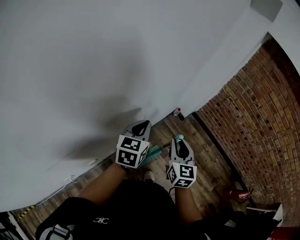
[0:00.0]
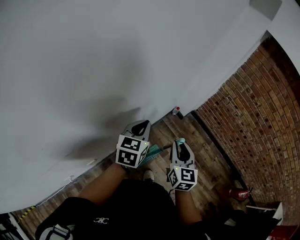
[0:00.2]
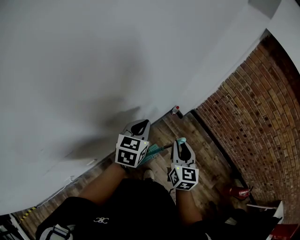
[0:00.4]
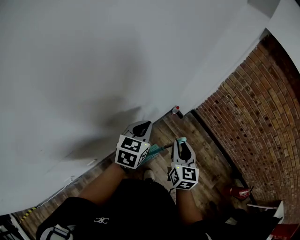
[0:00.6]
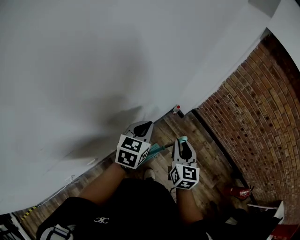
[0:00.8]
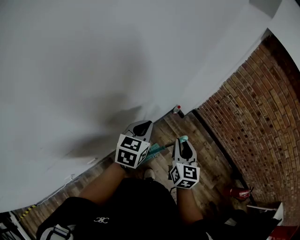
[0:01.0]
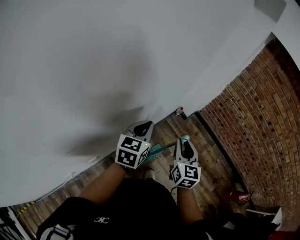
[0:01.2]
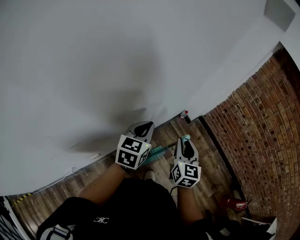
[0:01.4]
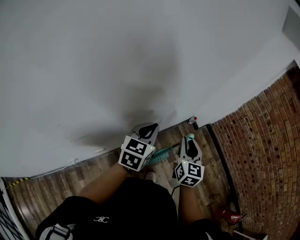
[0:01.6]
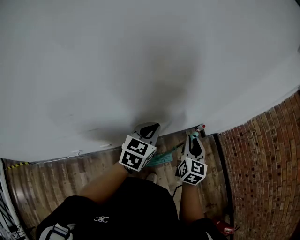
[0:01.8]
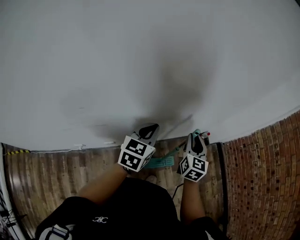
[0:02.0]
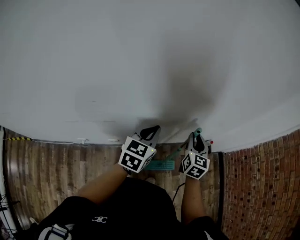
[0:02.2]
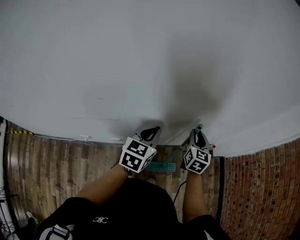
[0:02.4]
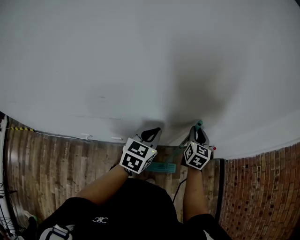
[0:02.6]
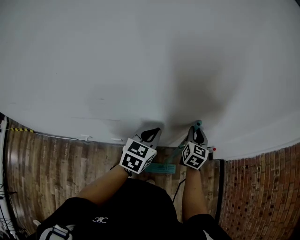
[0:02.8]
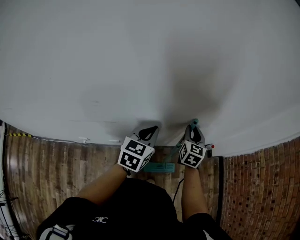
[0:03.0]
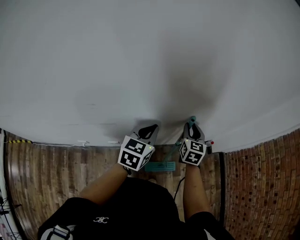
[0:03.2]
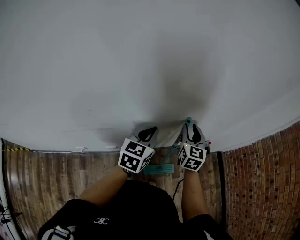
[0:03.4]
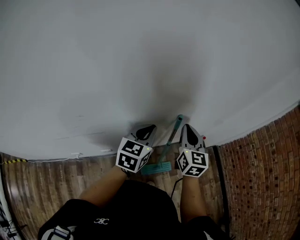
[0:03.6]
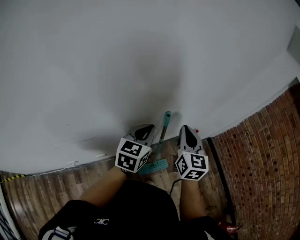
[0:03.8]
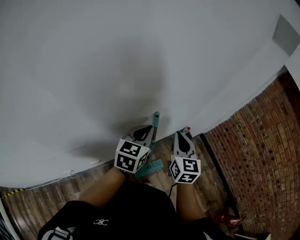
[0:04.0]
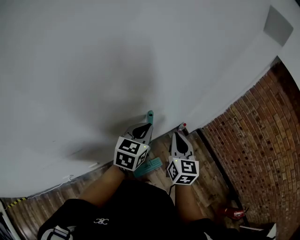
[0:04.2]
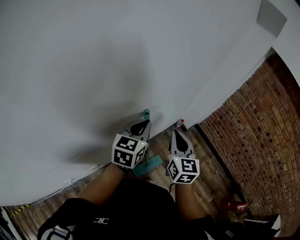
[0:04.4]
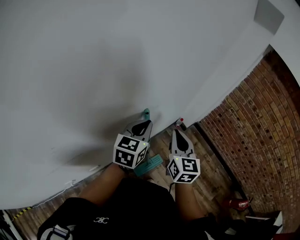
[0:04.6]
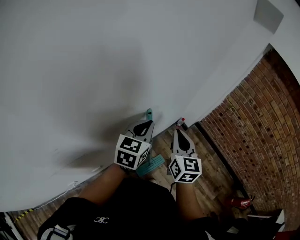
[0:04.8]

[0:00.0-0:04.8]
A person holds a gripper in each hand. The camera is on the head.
0:00.0 to 0:01.6: The grippers make only small movements.
0:01.6 to 0:03.2: The left gripper travels to the left by approximately 15 cm, and turns by approximately 20 degrees. Meanwhile the right gripper shifts about 20 cm to the left and forward, and swivels some 20 degrees.
0:03.2 to 0:04.8: The left gripper moves to the right and forward, some 15 cm, and rotates about 30 degrees, while the right gripper moves to the right, upward and backward, roughly 15 cm, swivels about 30 degrees, and closes.

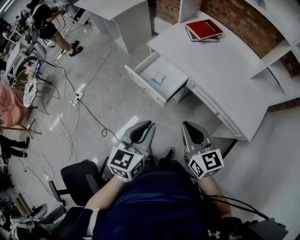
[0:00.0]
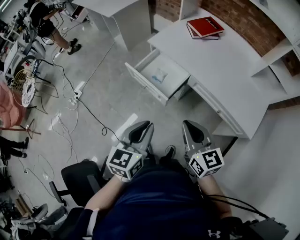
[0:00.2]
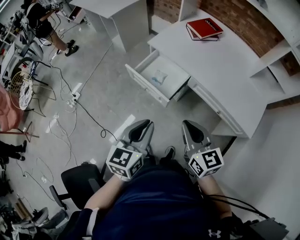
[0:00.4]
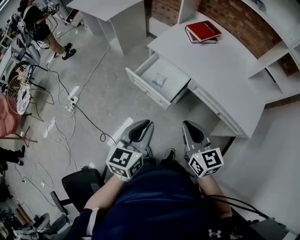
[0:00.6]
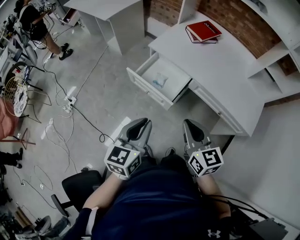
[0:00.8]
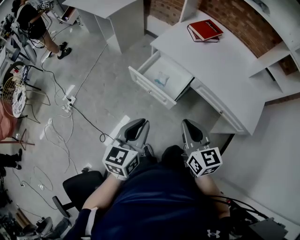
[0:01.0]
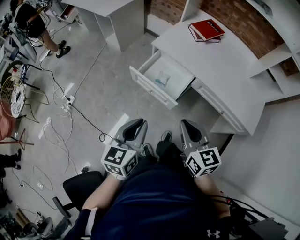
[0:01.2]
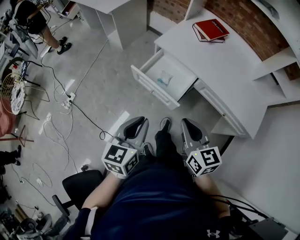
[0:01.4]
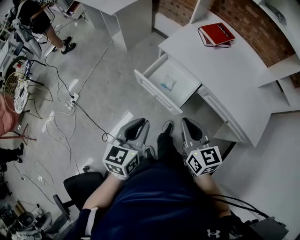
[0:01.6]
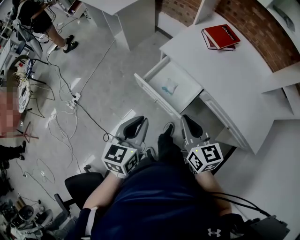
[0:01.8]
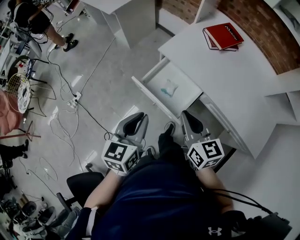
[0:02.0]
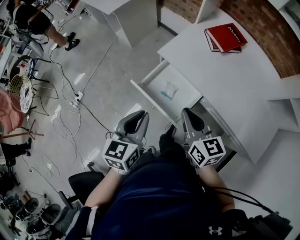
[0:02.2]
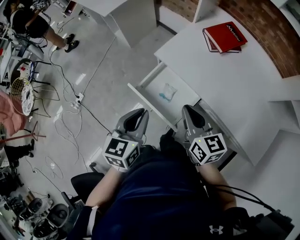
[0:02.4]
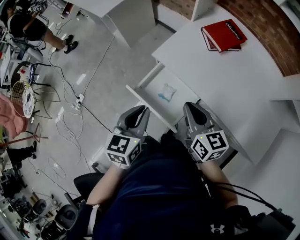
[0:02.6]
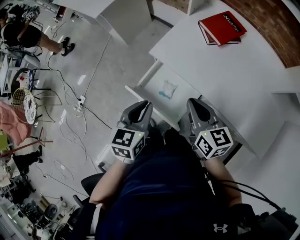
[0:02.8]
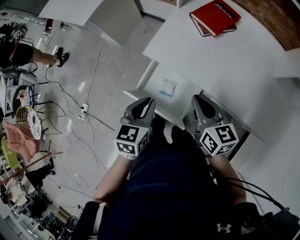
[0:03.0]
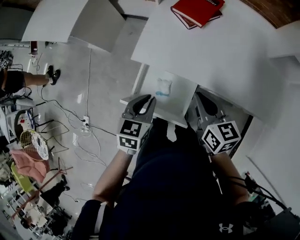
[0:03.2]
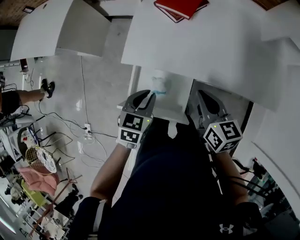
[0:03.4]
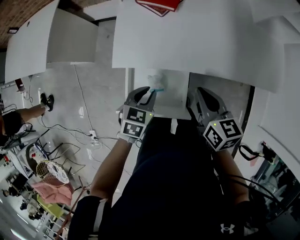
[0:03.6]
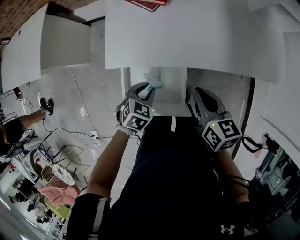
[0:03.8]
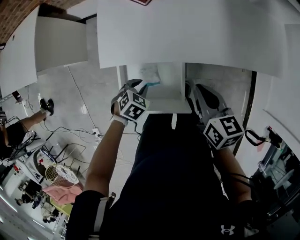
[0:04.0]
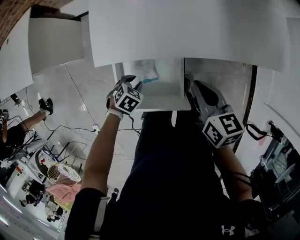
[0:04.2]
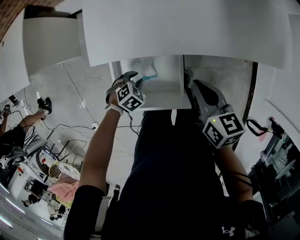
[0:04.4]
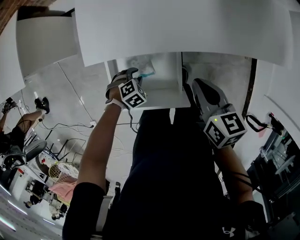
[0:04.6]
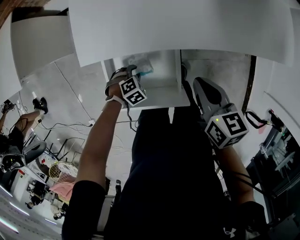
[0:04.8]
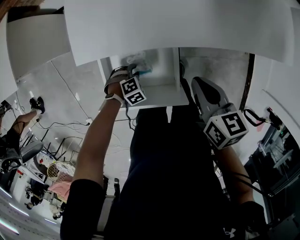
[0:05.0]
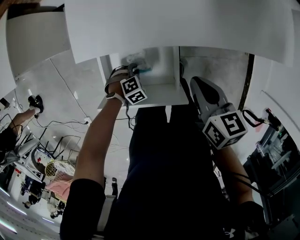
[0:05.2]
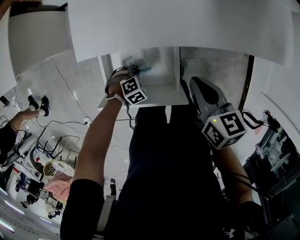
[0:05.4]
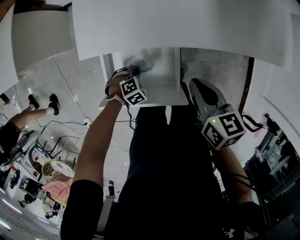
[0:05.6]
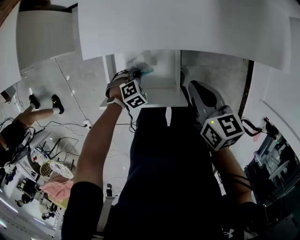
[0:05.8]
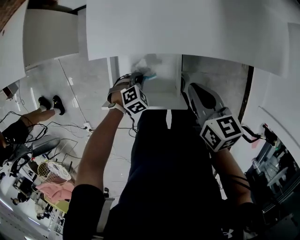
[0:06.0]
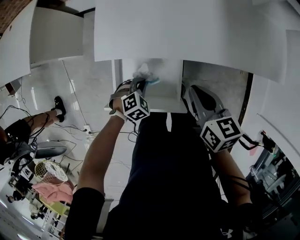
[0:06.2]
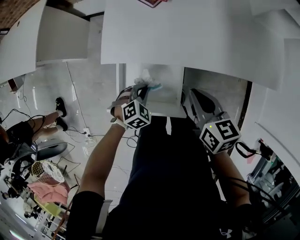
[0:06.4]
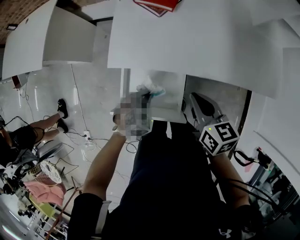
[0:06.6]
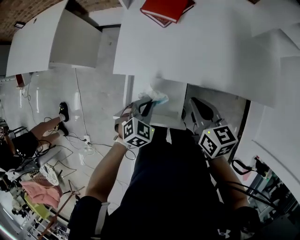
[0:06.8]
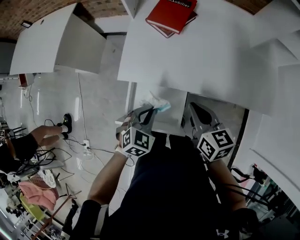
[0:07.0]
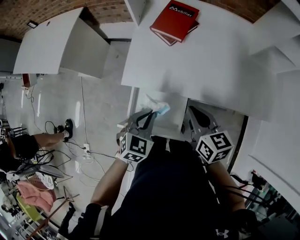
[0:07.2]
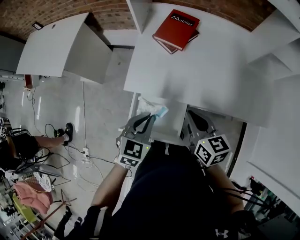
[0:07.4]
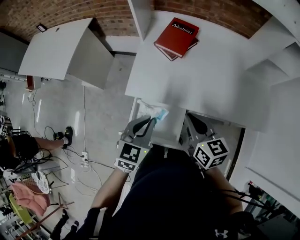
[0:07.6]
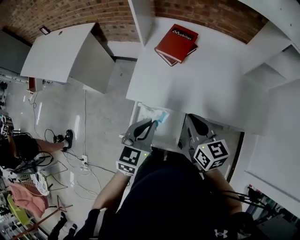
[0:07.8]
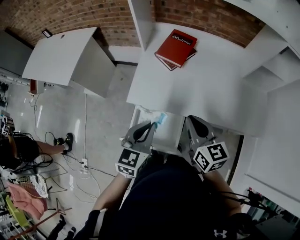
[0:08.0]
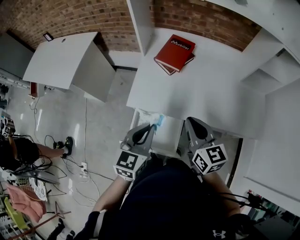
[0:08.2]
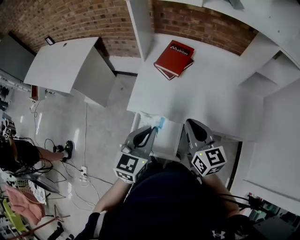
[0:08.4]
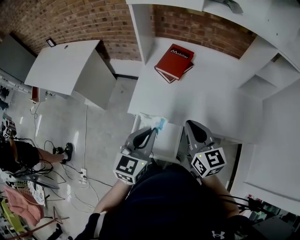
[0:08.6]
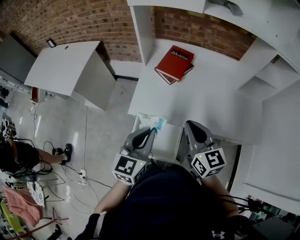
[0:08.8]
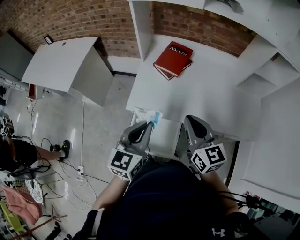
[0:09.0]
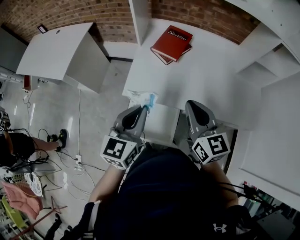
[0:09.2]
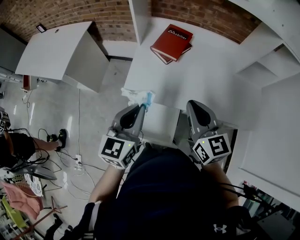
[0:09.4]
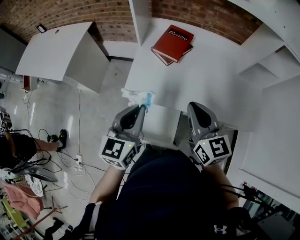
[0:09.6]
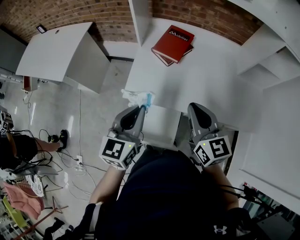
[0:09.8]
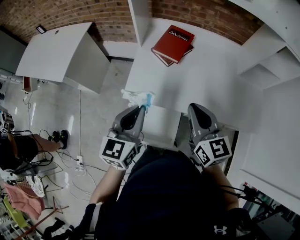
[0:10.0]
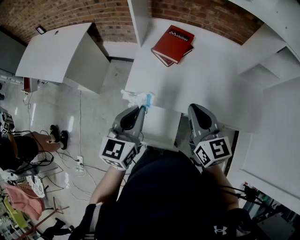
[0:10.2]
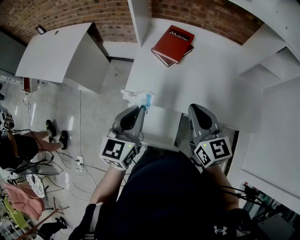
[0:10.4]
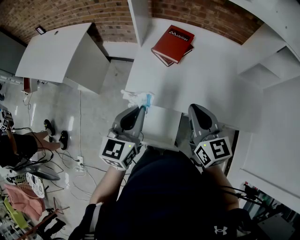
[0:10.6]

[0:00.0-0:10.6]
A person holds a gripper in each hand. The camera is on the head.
0:00.0 to 0:01.6: The grippers both shift to the left and forward by approximately 15 cm.
0:01.6 to 0:03.0: The two grippers go about 25 cm forward.
0:03.0 to 0:04.6: The right gripper goes roughly 10 cm downward, and changes its angle by approximately 40 degrees; the left gripper travels downward by approximately 35 cm, tips its fingers downward by roughly 40 degrees, and opens.
0:04.6 to 0:06.0: The left gripper closes.
0:06.0 to 0:07.6: The right gripper moves upward, some 15 cm, and swivels some 20 degrees. The left gripper heads upward, covering some 35 cm, and tilts its fingers approximately 40 degrees upward.
0:07.6 to 0:09.0: Both grippers move upward, roughly 10 cm.
0:09.0 to 0:10.6: The grippers make only small movements.

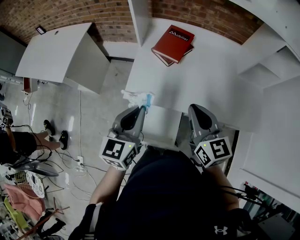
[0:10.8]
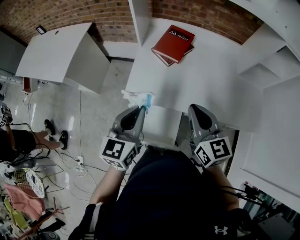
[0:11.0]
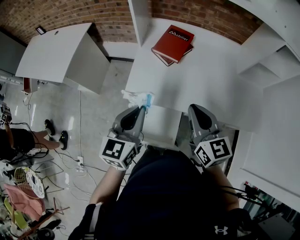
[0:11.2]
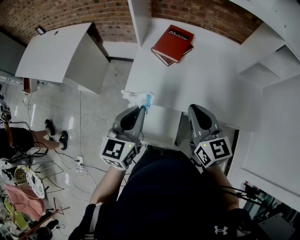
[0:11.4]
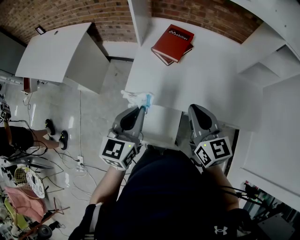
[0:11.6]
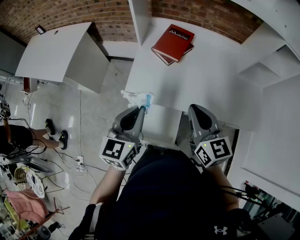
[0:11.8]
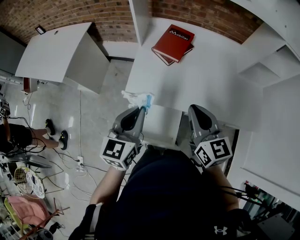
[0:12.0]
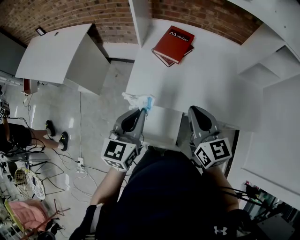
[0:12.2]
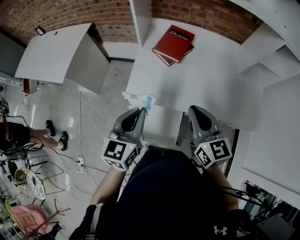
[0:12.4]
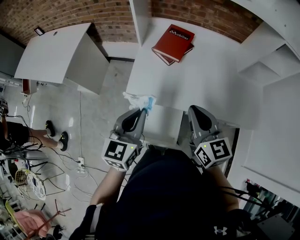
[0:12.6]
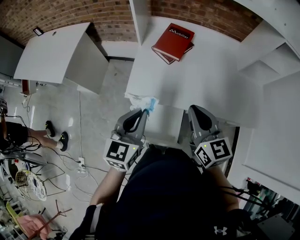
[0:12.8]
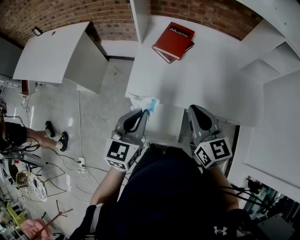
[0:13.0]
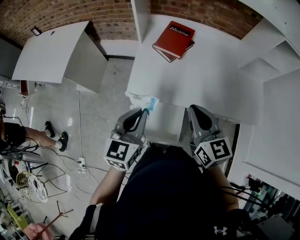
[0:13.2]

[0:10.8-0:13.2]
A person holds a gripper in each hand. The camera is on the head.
0:10.8 to 0:12.0: Neither gripper changes place.
0:12.0 to 0:13.2: There are only small adjustments of the grippers.

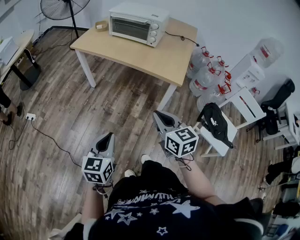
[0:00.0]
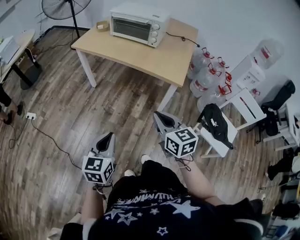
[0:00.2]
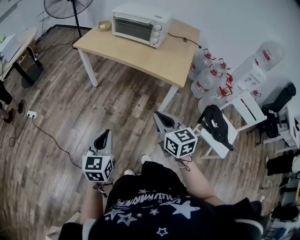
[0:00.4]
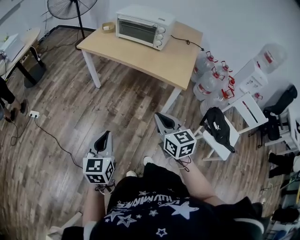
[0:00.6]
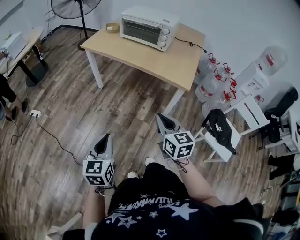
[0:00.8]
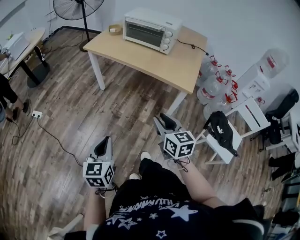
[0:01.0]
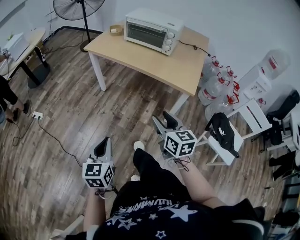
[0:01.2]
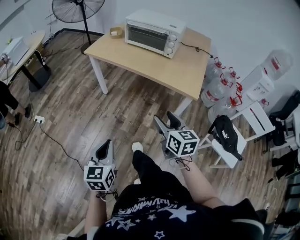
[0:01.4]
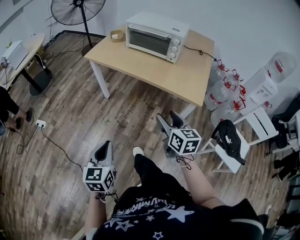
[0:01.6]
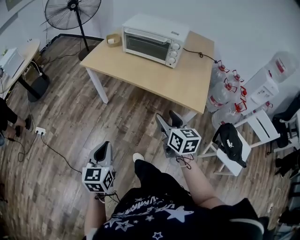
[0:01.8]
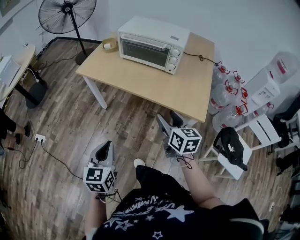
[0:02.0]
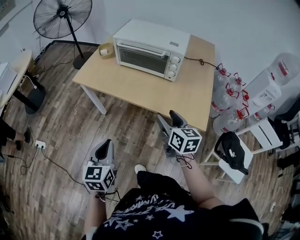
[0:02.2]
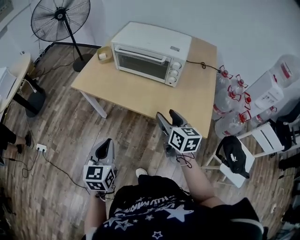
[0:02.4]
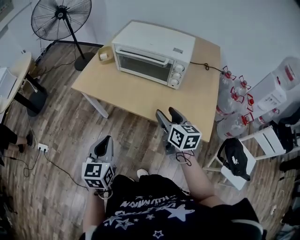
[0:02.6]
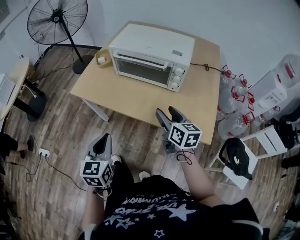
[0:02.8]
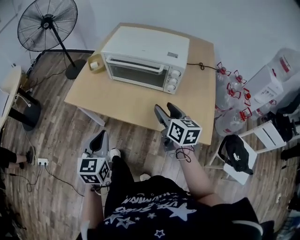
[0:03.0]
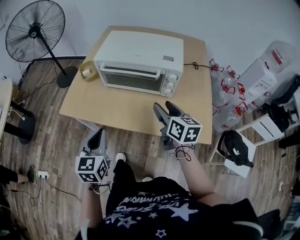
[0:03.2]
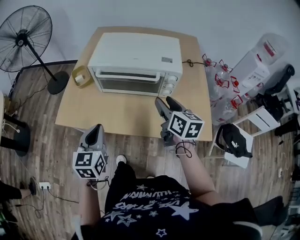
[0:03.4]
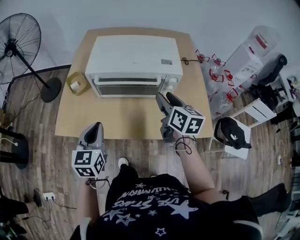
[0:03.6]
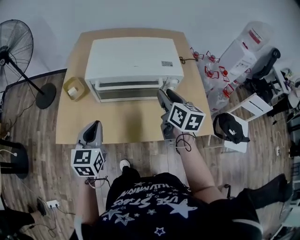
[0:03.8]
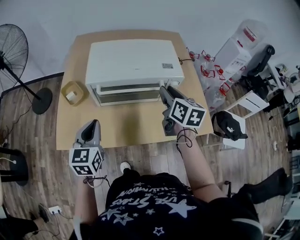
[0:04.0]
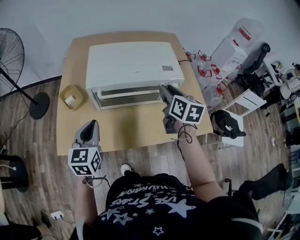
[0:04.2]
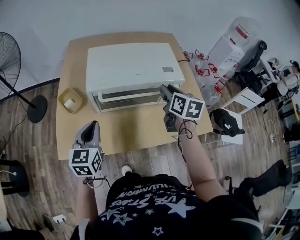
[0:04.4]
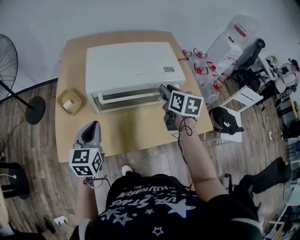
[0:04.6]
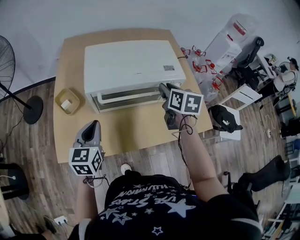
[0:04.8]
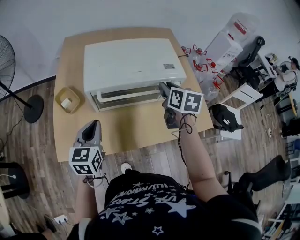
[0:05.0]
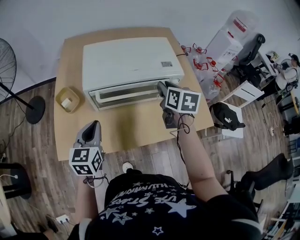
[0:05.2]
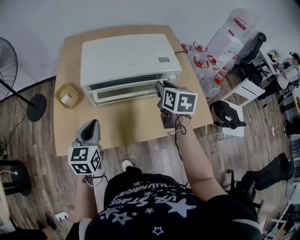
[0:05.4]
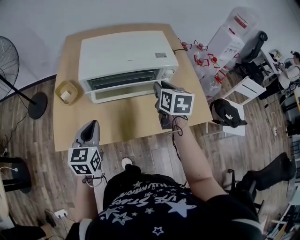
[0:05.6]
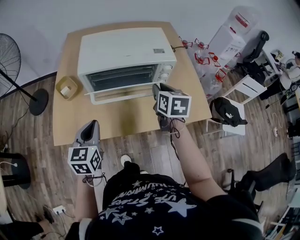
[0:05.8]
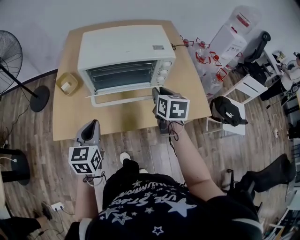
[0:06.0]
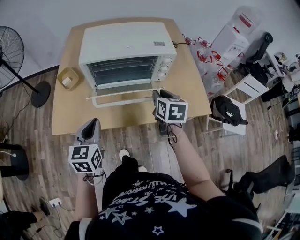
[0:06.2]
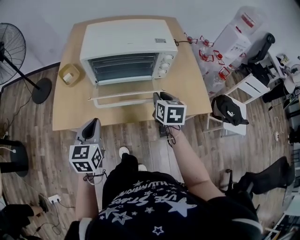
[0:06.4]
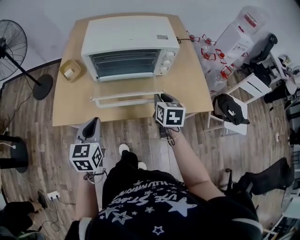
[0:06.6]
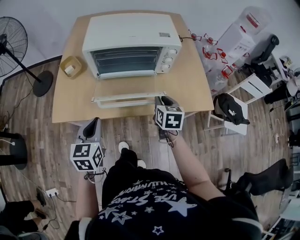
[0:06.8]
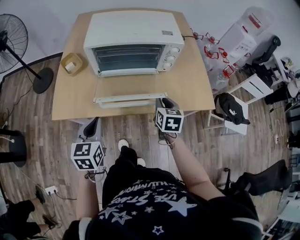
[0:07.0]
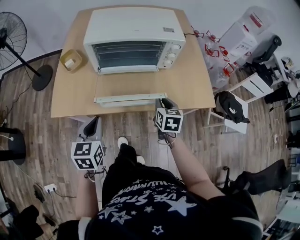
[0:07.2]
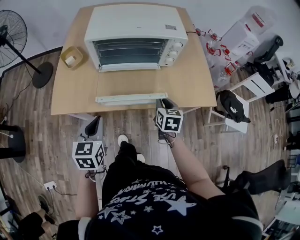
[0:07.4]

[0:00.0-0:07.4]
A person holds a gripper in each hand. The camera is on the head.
0:00.0 to 0:01.4: The left gripper is displaced to the left by roughly 10 cm. The right gripper goes about 10 cm forward, and opens its fingers.
0:01.4 to 0:03.0: The two grippers travel together, forward, some 40 cm.
0:03.0 to 0:04.4: The left gripper shifts by about 30 cm, and rotates some 30 degrees, while the right gripper changes place by some 15 cm, swivels roughly 30 degrees, and closes.
0:04.4 to 0:06.0: The left gripper moves backward and to the right, roughly 10 cm. Meanwhile the right gripper shifts some 10 cm backward and downward.
0:06.0 to 0:07.4: The right gripper goes approximately 15 cm downward and backward; the left gripper travels backward and downward by about 10 cm.
